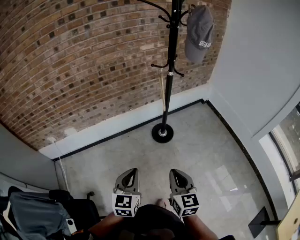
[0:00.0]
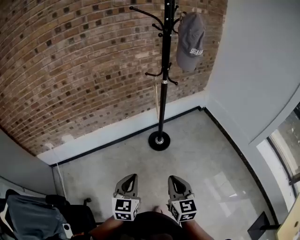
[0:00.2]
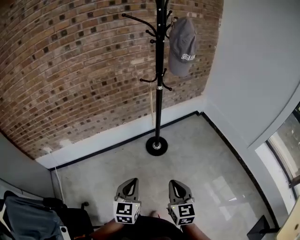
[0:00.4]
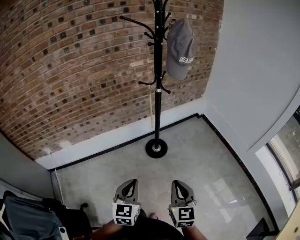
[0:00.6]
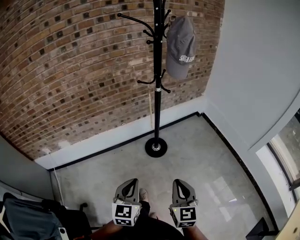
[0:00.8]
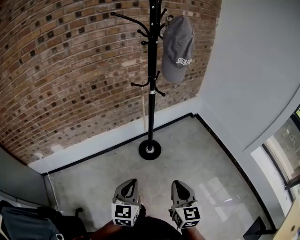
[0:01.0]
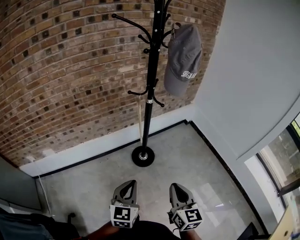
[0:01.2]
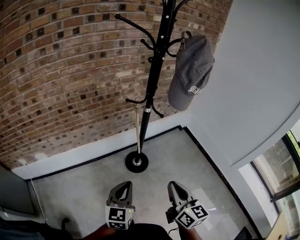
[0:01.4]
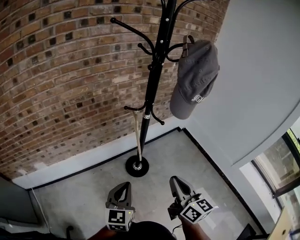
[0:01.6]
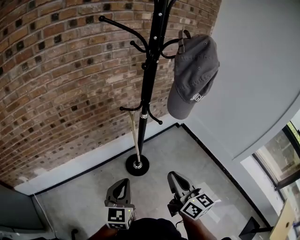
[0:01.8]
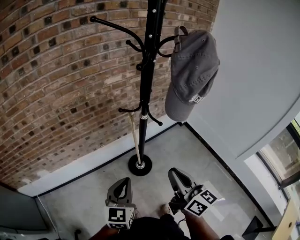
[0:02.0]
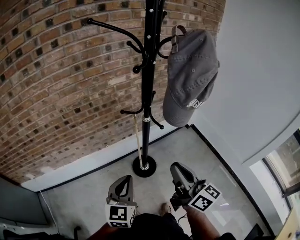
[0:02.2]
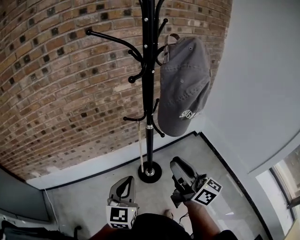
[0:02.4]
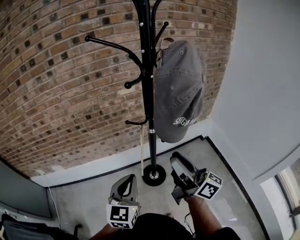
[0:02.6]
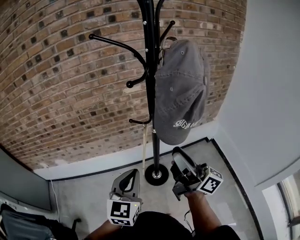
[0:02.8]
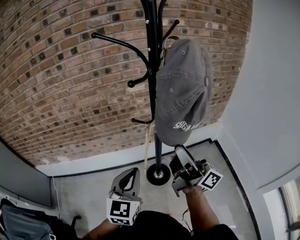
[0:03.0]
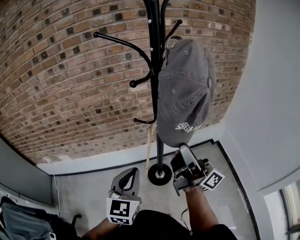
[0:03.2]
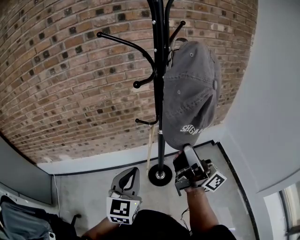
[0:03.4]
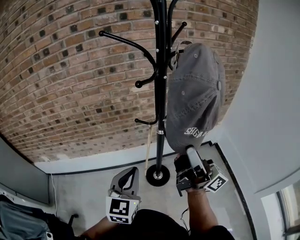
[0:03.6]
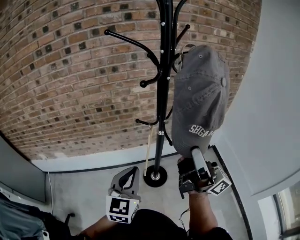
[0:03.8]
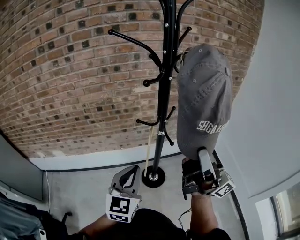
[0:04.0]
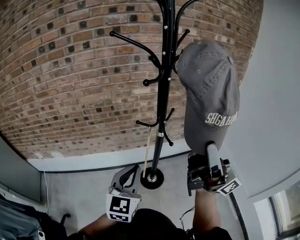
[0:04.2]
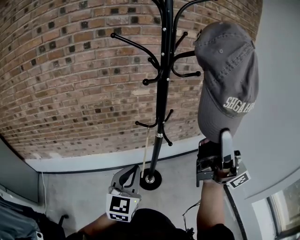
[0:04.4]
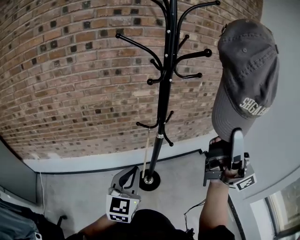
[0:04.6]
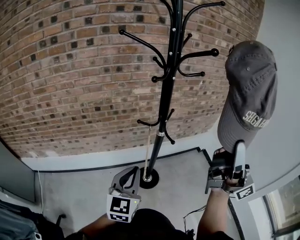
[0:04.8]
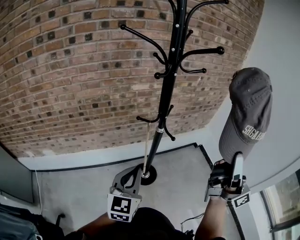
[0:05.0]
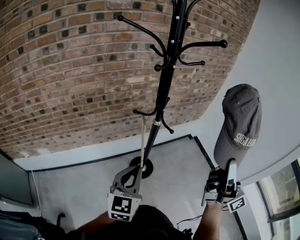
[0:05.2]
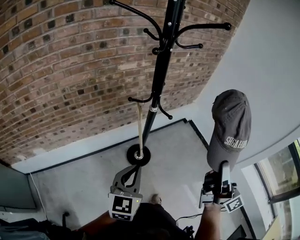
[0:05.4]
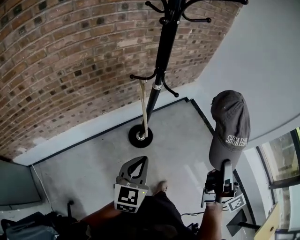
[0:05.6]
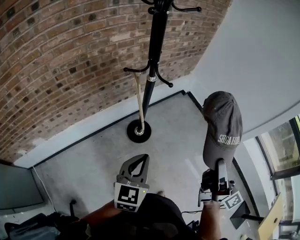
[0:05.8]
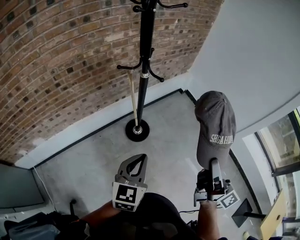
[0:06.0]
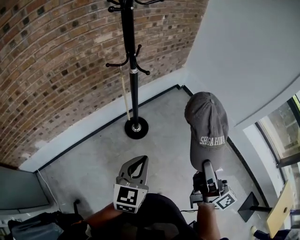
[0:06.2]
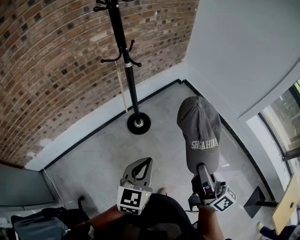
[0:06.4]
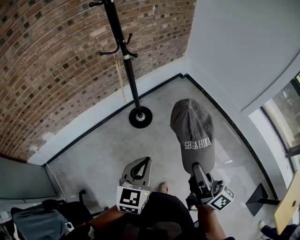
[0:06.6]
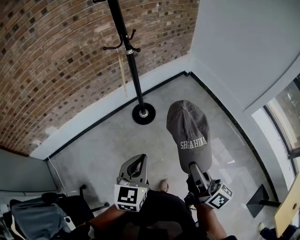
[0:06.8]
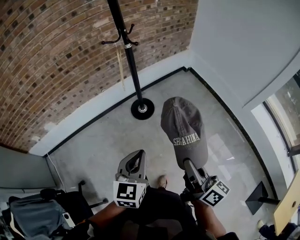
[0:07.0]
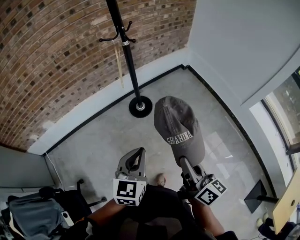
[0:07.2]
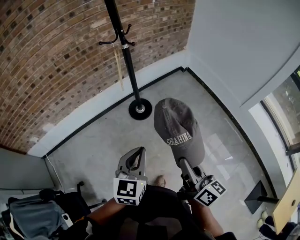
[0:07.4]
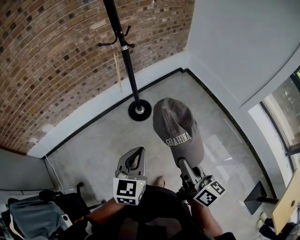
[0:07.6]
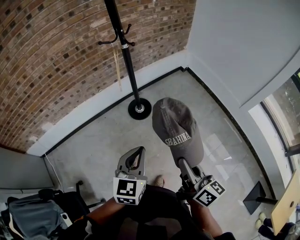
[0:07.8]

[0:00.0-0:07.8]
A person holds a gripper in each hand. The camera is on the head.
0:00.0 to 0:01.6: Both grippers travel together forward, some 25 cm. The right gripper changes its angle by about 20 degrees.
0:01.6 to 0:03.2: The left gripper goes approximately 20 cm to the right, forward and upward. The right gripper heads forward, to the right and upward, covering about 25 cm, tilts its fingers some 50 degrees upward, and opens.
0:03.2 to 0:04.6: The right gripper travels upward and backward by roughly 20 cm, rotates approximately 30 degrees, and closes up.
0:04.6 to 0:06.2: The right gripper travels downward by approximately 30 cm, and tips its fingers downward by roughly 40 degrees. Meanwhile the left gripper changes place by about 20 cm, and turns by about 30 degrees.
0:06.2 to 0:07.8: The right gripper heads backward and downward, covering approximately 15 cm, and turns by about 20 degrees; the left gripper is displaced backward and to the right by some 15 cm.

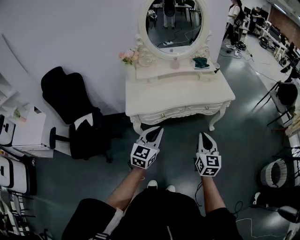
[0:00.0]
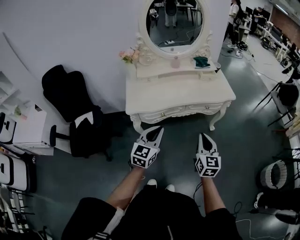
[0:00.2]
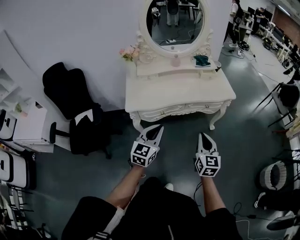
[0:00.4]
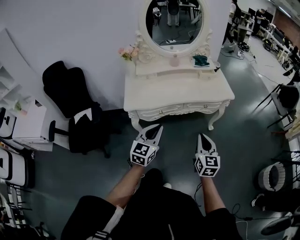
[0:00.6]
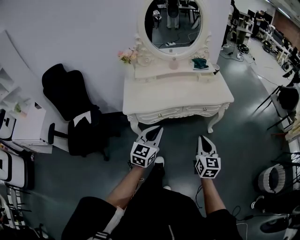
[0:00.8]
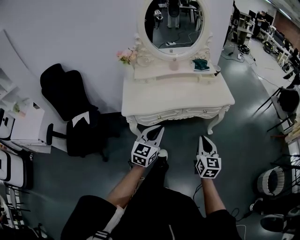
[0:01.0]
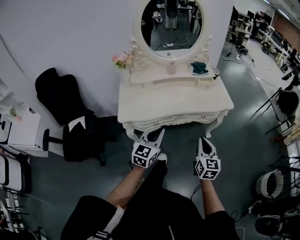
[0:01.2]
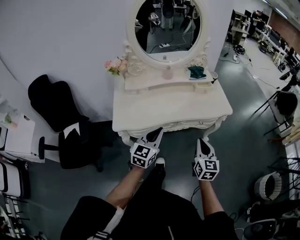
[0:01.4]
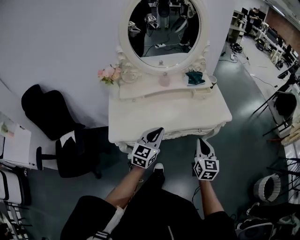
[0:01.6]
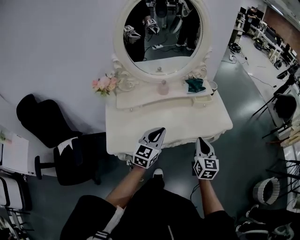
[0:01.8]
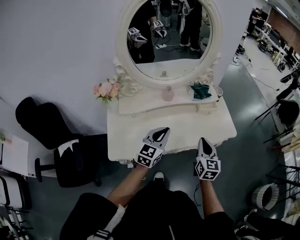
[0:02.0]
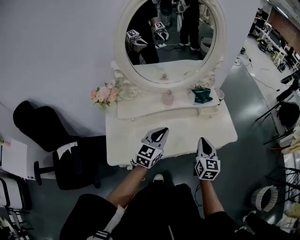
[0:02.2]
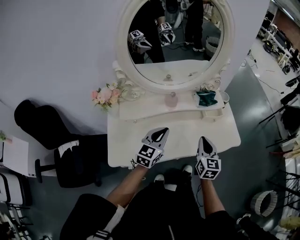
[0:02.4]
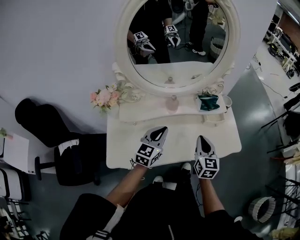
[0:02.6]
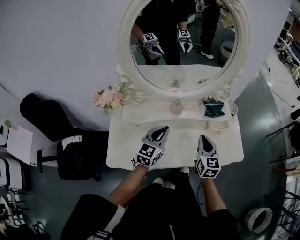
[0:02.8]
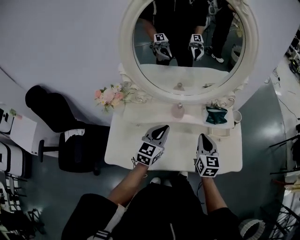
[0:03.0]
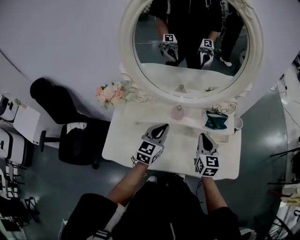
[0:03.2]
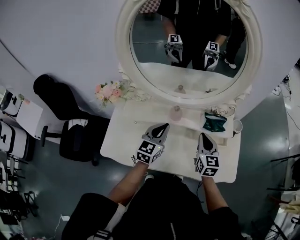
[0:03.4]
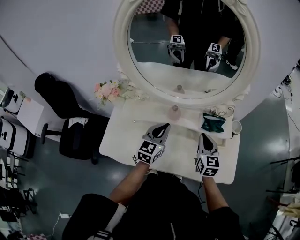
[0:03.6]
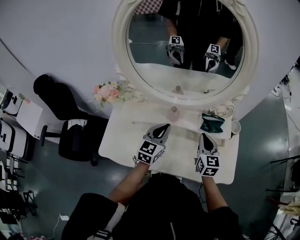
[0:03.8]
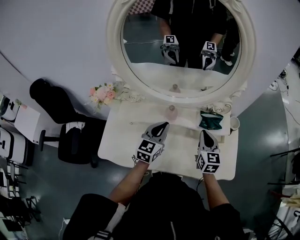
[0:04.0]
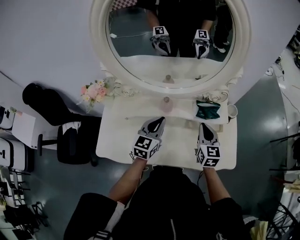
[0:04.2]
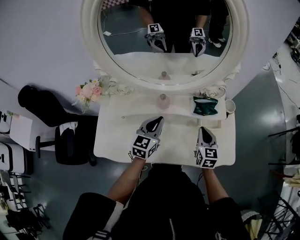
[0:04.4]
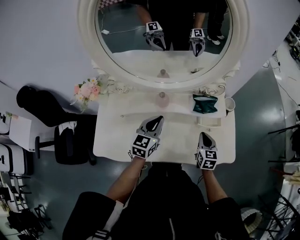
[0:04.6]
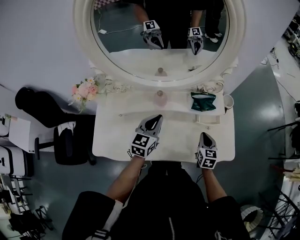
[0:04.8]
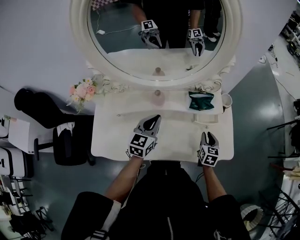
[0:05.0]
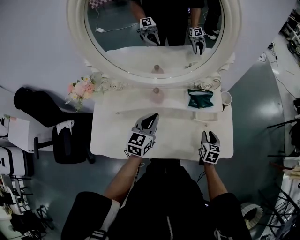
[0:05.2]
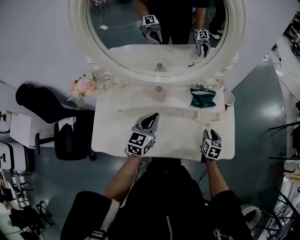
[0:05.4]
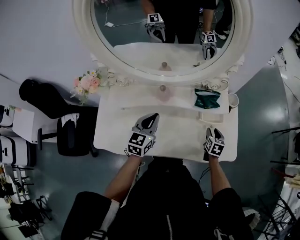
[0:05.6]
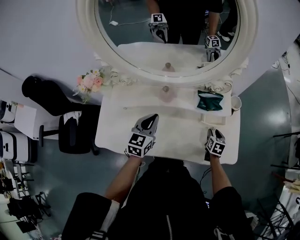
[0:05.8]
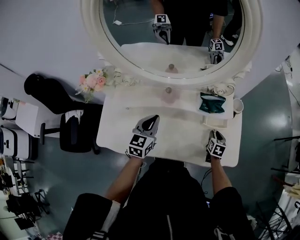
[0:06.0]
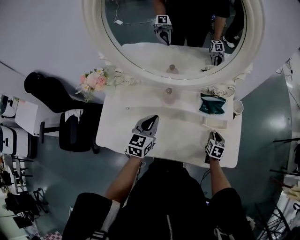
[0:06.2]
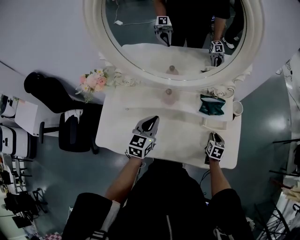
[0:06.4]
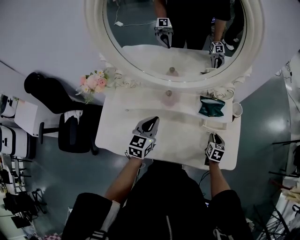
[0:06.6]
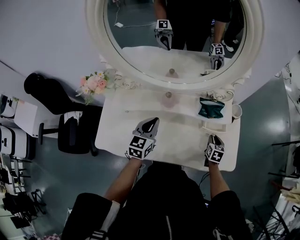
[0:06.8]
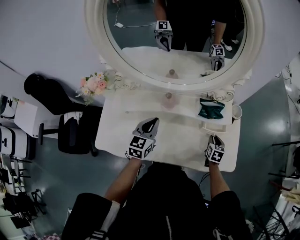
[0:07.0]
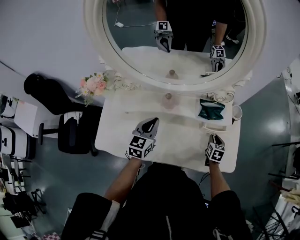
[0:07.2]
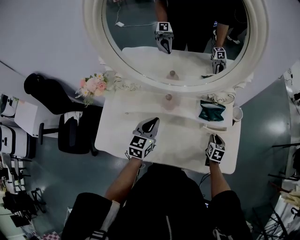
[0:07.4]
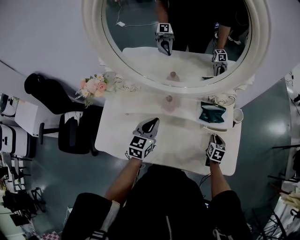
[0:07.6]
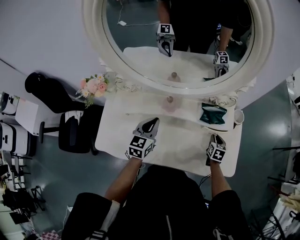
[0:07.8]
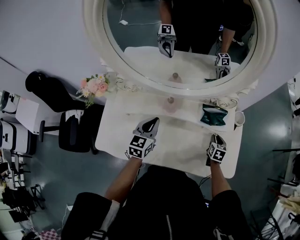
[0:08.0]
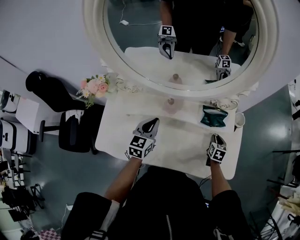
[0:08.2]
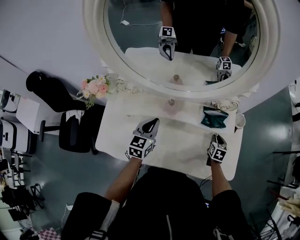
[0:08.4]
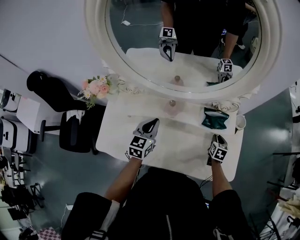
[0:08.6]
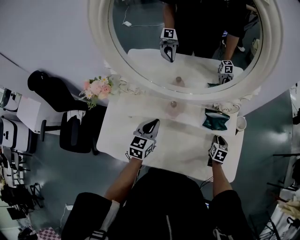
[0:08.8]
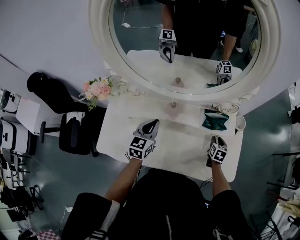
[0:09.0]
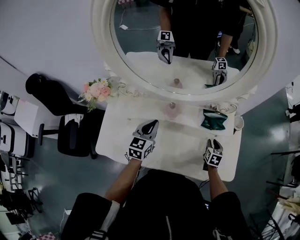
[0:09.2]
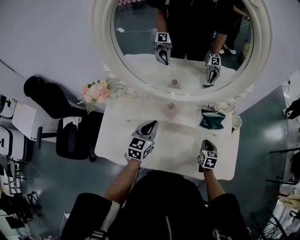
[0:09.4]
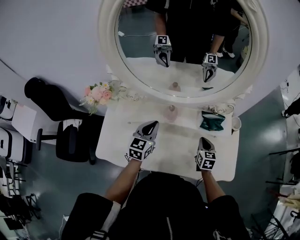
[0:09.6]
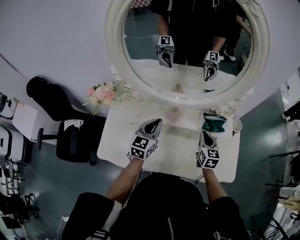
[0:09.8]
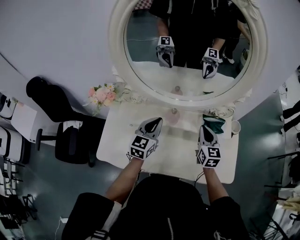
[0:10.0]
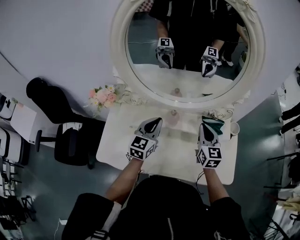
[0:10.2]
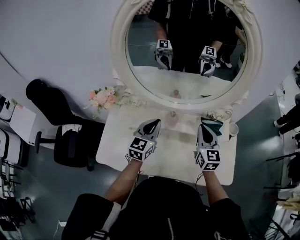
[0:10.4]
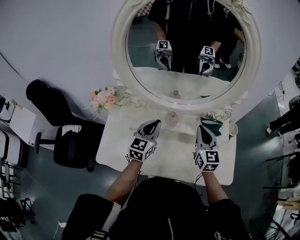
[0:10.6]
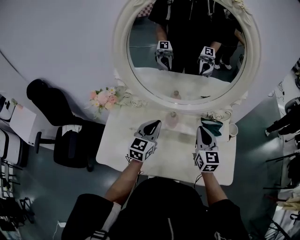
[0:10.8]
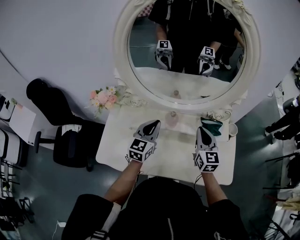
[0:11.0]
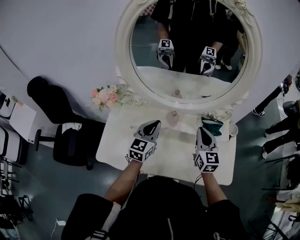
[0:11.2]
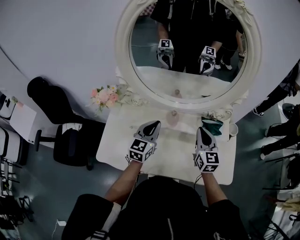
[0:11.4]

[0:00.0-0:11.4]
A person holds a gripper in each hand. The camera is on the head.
0:00.0 to 0:01.4: Both grippers move forward, some 15 cm.
0:01.4 to 0:02.8: The grippers both shift forward by roughly 35 cm.
0:02.8 to 0:04.2: Both grippers move forward and to the right, some 10 cm.
0:04.2 to 0:05.6: The right gripper shifts some 25 cm downward and to the right, turns by roughly 30 degrees, and opens its fingers.
0:05.6 to 0:07.2: The grippers move only a little.
0:07.2 to 0:08.6: The right gripper moves forward, approximately 5 cm.
0:08.6 to 0:10.0: The right gripper travels upward and to the left by about 25 cm, angles its fingers upward, by roughly 30 degrees, and closes up. Meanwhile the left gripper heads upward, covering approximately 5 cm.
0:10.0 to 0:11.4: The right gripper moves some 5 cm.

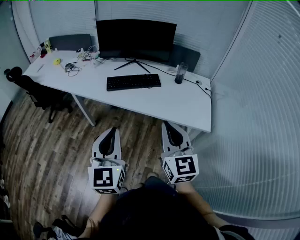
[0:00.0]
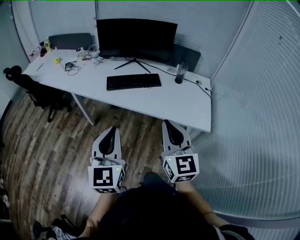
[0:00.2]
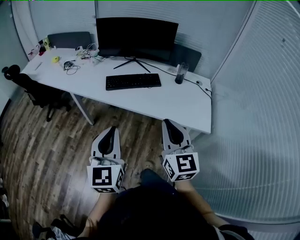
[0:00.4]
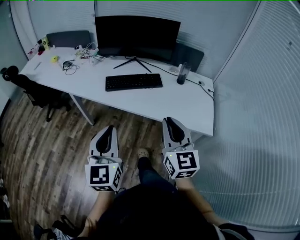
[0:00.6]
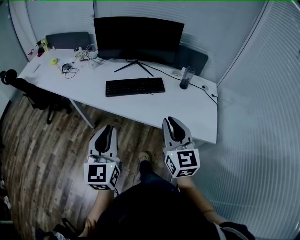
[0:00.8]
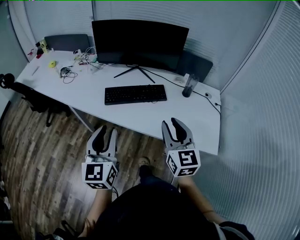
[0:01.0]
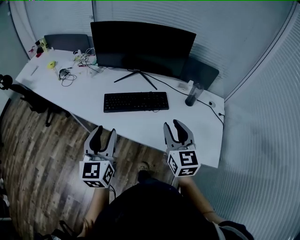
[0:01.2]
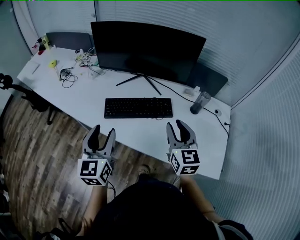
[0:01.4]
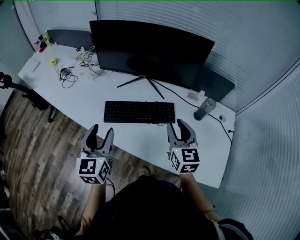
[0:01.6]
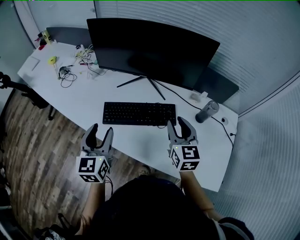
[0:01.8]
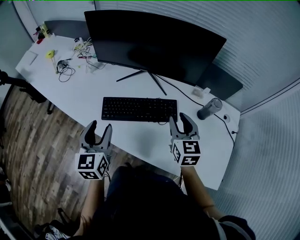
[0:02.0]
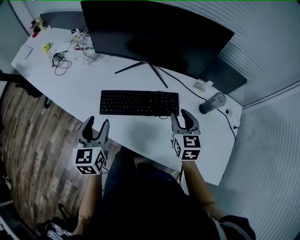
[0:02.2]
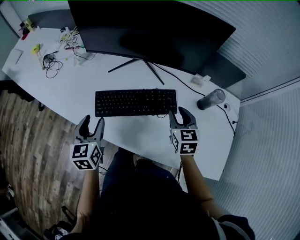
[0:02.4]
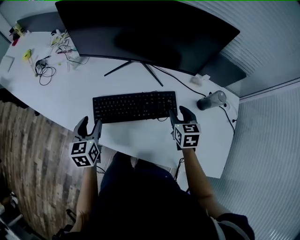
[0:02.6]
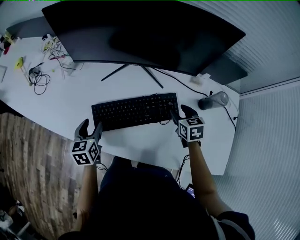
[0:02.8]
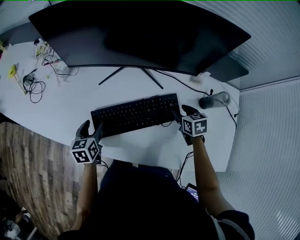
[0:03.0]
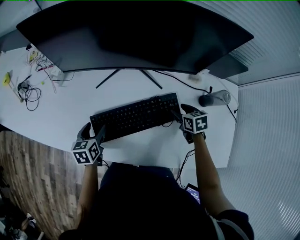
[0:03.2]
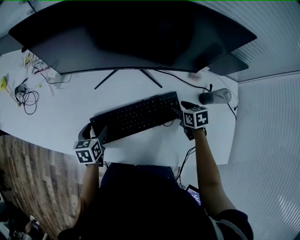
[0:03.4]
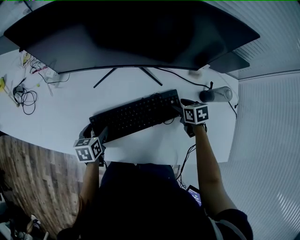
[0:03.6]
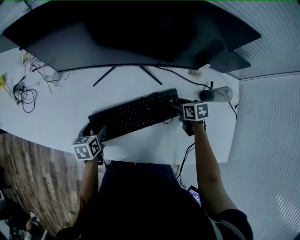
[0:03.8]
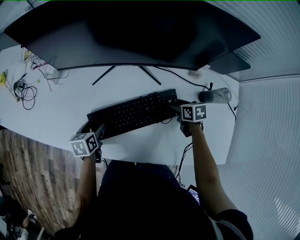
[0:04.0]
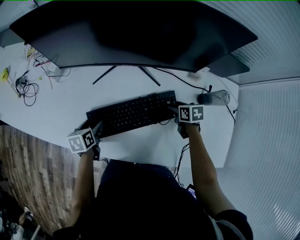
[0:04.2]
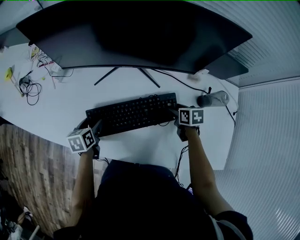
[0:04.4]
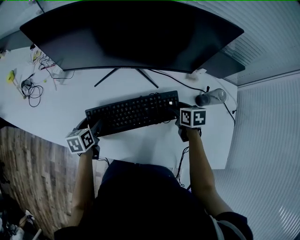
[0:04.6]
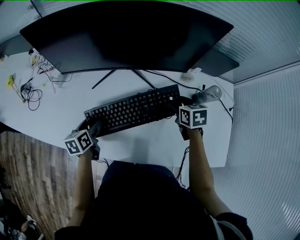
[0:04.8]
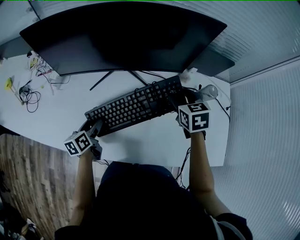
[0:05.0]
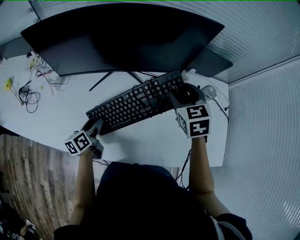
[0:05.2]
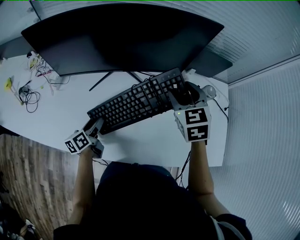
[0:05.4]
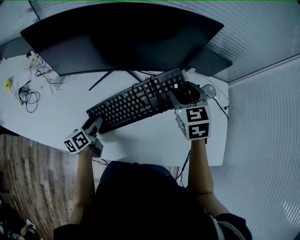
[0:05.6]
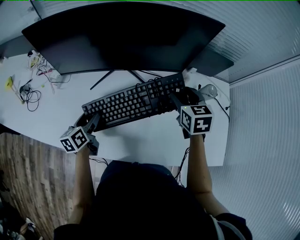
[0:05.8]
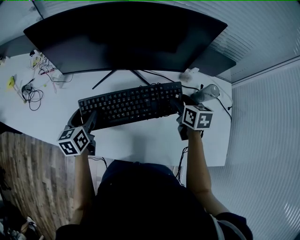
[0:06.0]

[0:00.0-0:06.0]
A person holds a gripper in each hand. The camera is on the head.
0:00.0 to 0:01.6: Both grippers move forward, about 40 cm. The left gripper opens its fingers. Meanwhile the right gripper opens its fingers.
0:01.6 to 0:03.0: The two grippers go approximately 30 cm downward and forward. The right gripper tilts its fingers roughly 40 degrees downward, while the left gripper tilts its fingers approximately 30 degrees downward.
0:03.0 to 0:04.4: The grippers move only a little.
0:04.4 to 0:06.0: Both grippers move upward, roughly 15 cm. The right gripper changes its angle by approximately 20 degrees.
